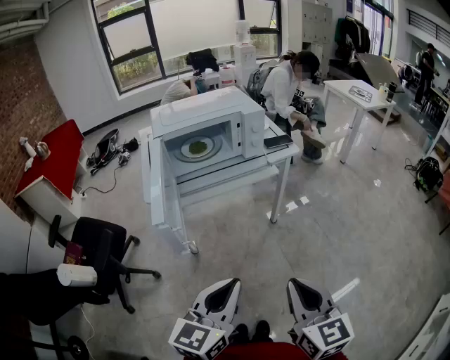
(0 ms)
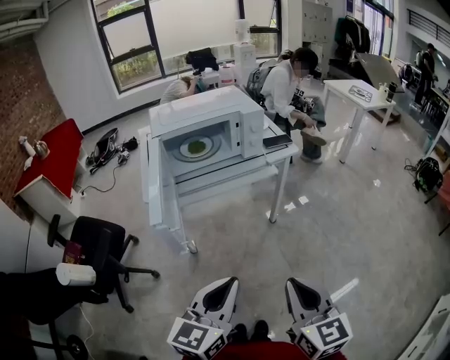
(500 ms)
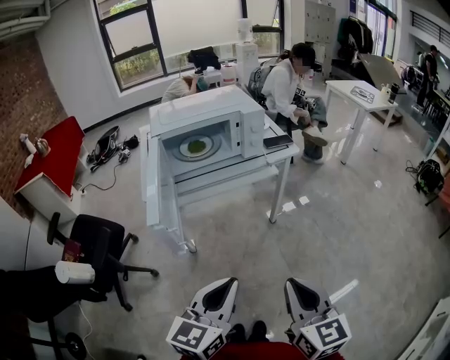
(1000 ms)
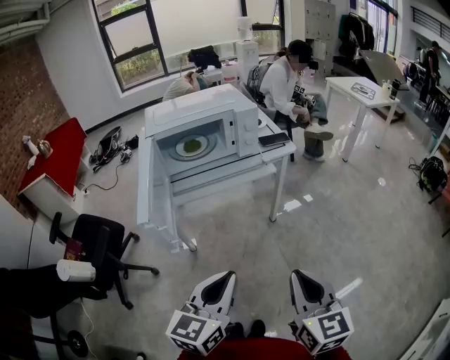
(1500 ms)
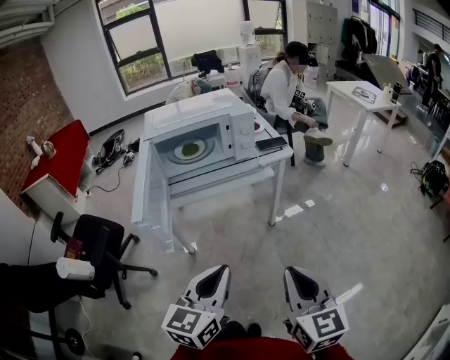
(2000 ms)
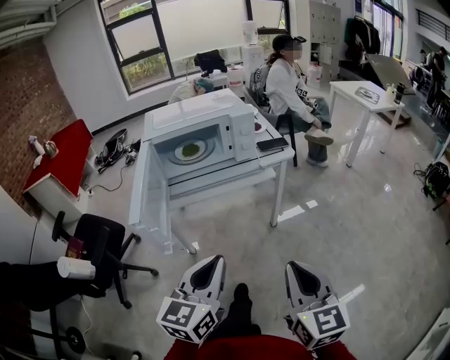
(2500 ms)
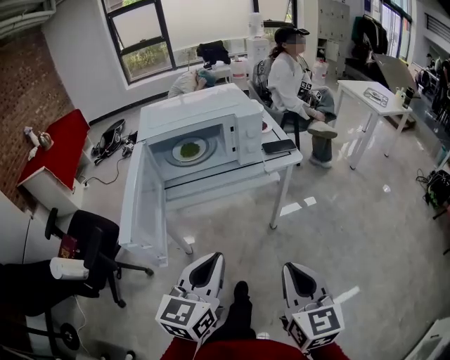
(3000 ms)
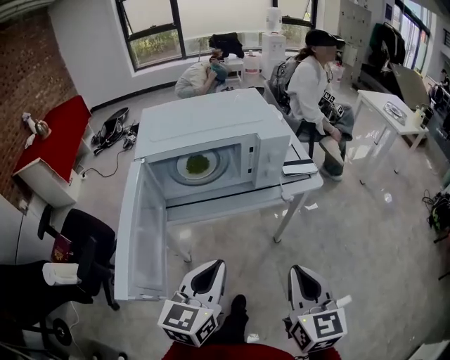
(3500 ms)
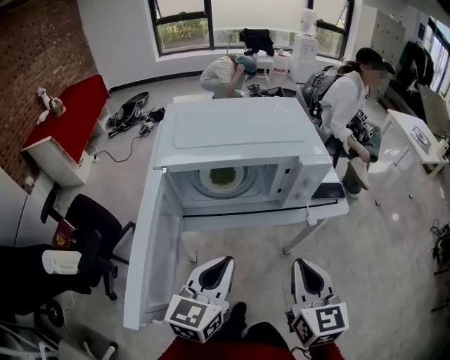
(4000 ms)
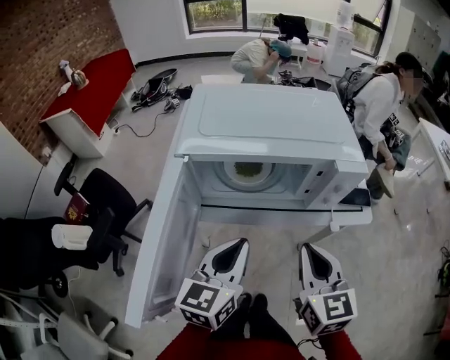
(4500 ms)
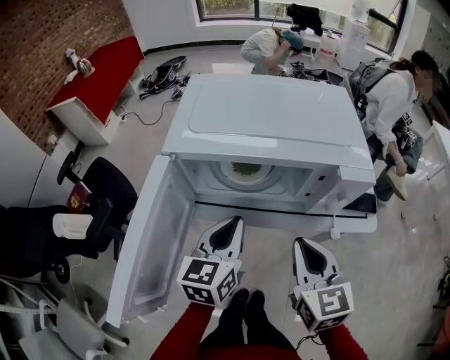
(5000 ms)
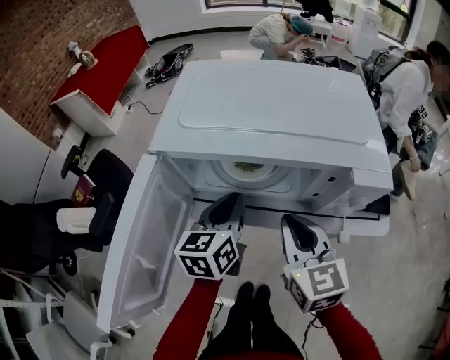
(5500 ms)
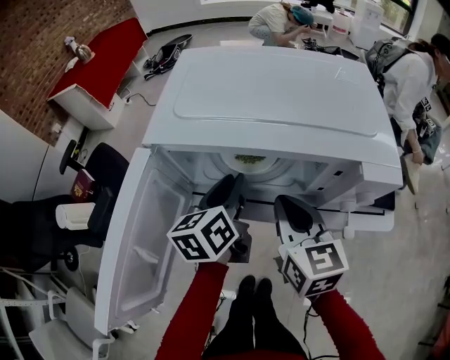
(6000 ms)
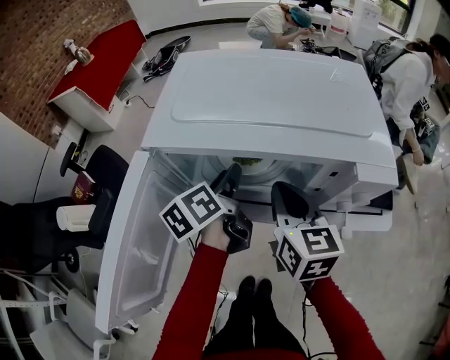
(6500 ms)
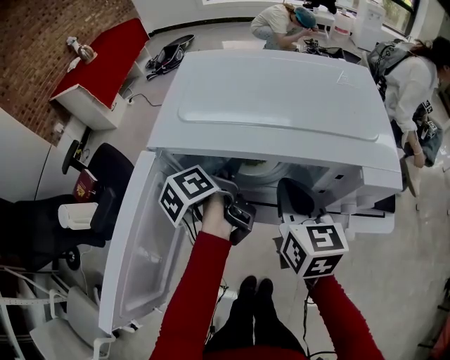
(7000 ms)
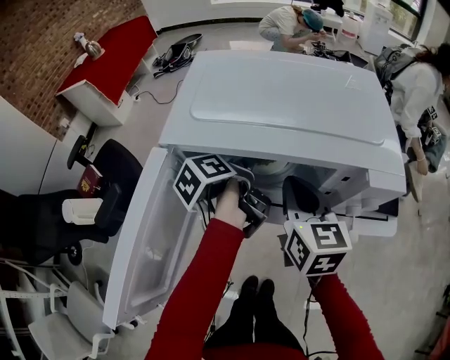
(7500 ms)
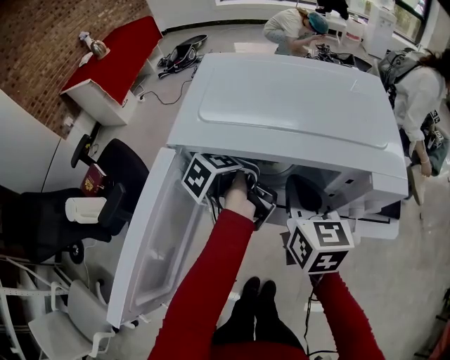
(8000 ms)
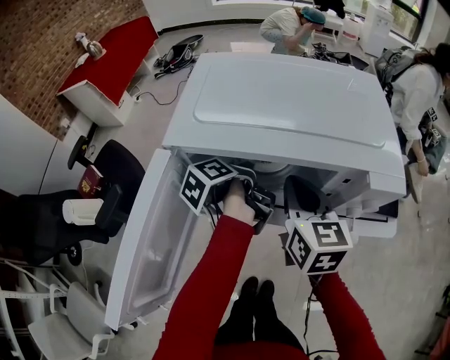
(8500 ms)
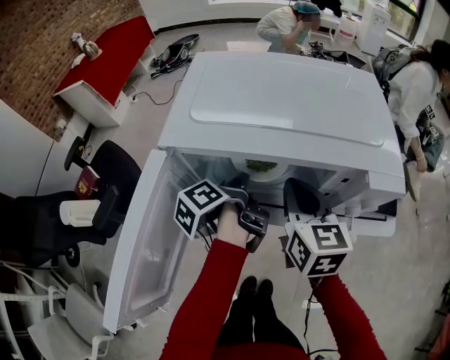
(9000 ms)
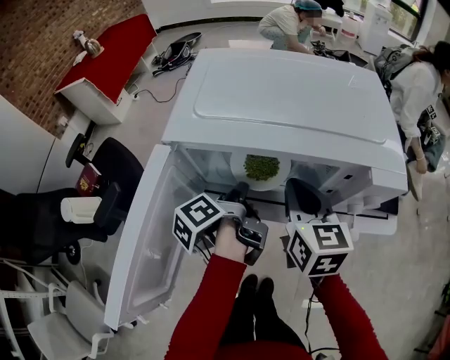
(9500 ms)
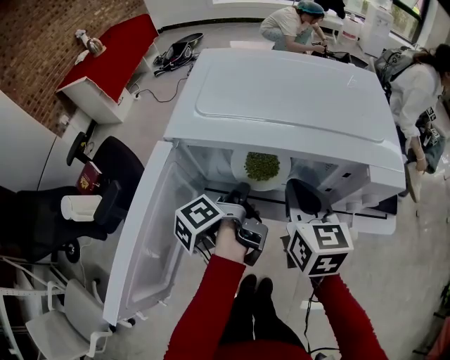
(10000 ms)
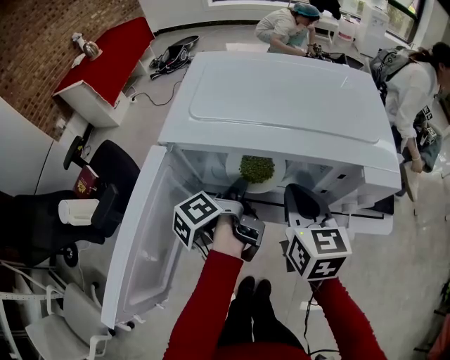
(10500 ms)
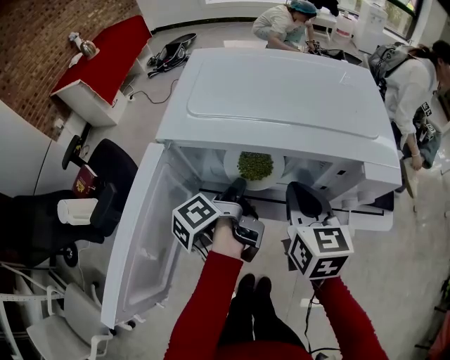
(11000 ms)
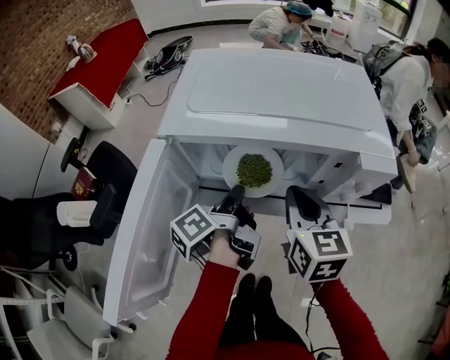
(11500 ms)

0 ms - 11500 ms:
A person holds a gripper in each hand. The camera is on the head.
0 ms - 2000 ms: The right gripper heads to the right, covering about 5 cm. Meanwhile the left gripper changes place by about 5 cm.
2000 ms - 4000 ms: Both grippers move forward, about 25 cm.
4000 ms - 6000 ms: The grippers both shift forward by about 20 cm. The right gripper turns by approximately 20 degrees, while the left gripper rotates roughly 40 degrees, and opens.
6000 ms - 7500 ms: The left gripper changes place by about 5 cm, and twists approximately 40 degrees counterclockwise, seen from behind.
7500 ms - 9500 ms: The left gripper shifts about 5 cm backward, and closes up.
9500 ms - 11500 ms: The grippers stay close to where they were, moving slightly.

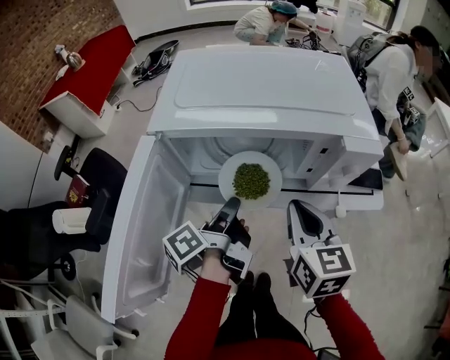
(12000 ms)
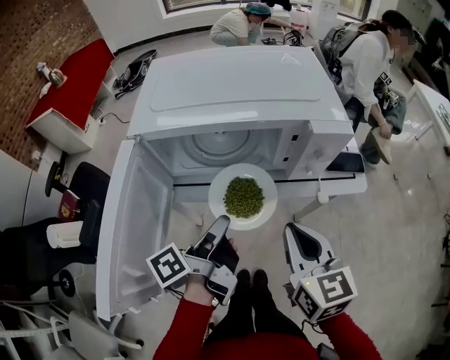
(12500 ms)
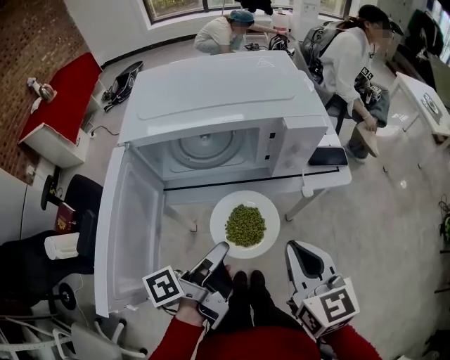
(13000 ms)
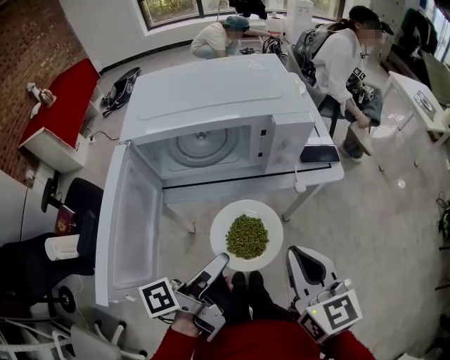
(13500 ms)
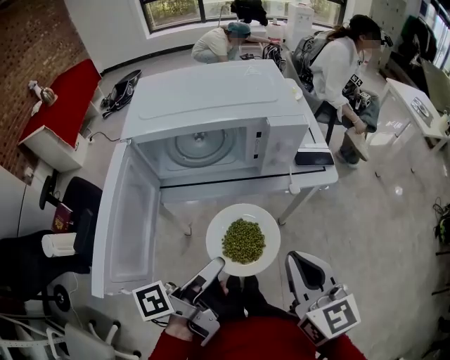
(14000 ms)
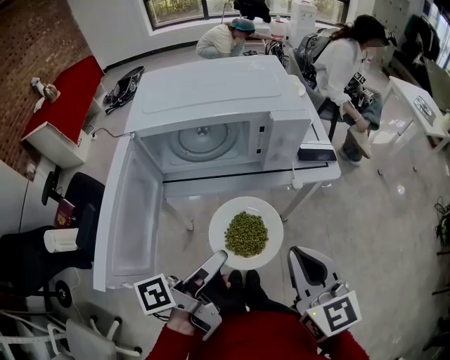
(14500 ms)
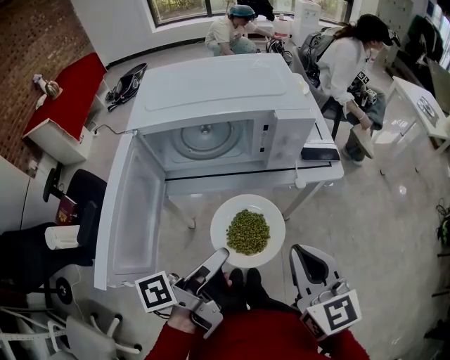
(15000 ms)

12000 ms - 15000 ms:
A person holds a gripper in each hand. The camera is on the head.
12000 ms - 13500 ms: Both grippers travel together backward and to the right, some 20 cm. The left gripper changes its angle by some 20 degrees.
13500 ms - 15000 ms: The grippers stay close to where they were, moving slightly.

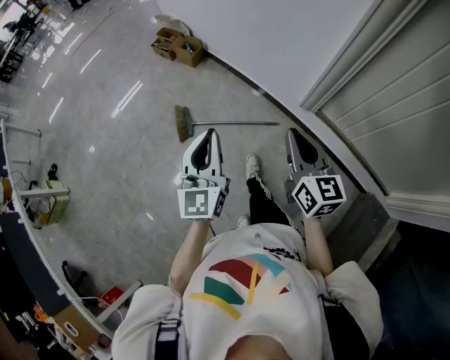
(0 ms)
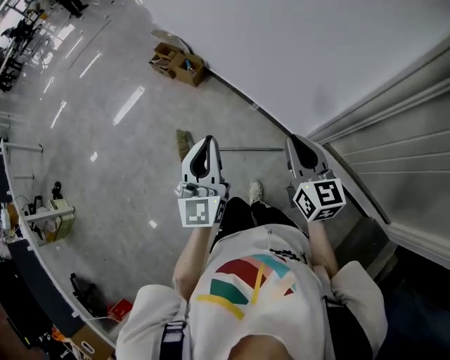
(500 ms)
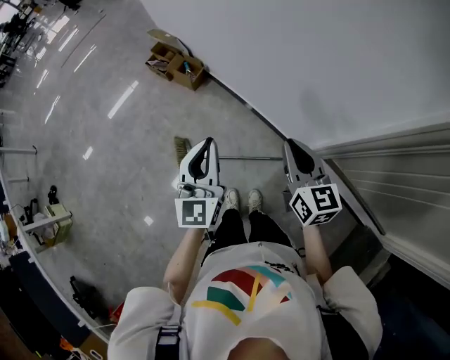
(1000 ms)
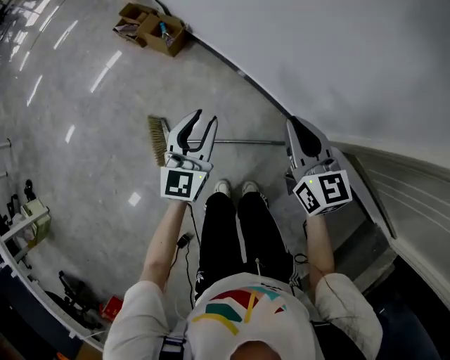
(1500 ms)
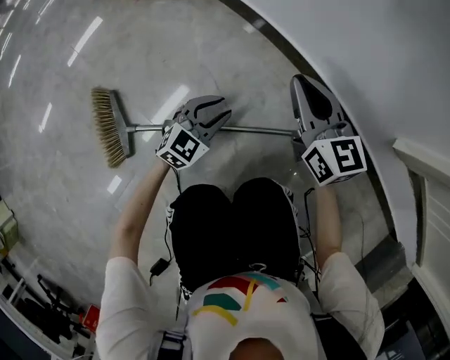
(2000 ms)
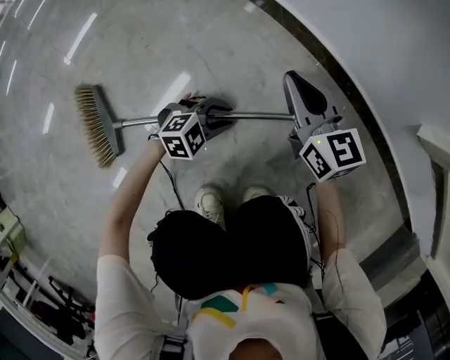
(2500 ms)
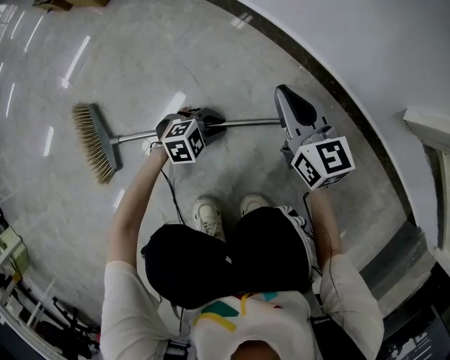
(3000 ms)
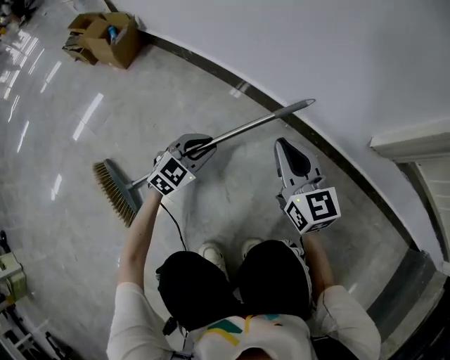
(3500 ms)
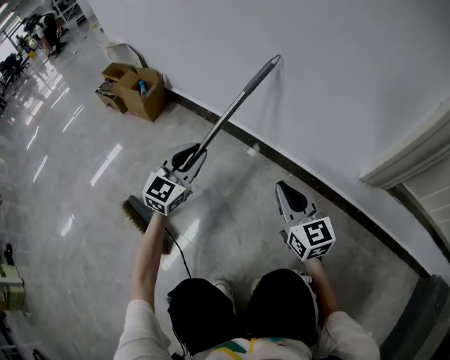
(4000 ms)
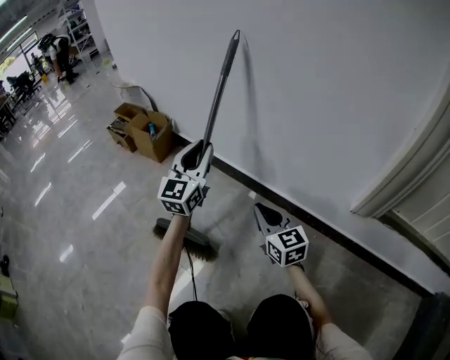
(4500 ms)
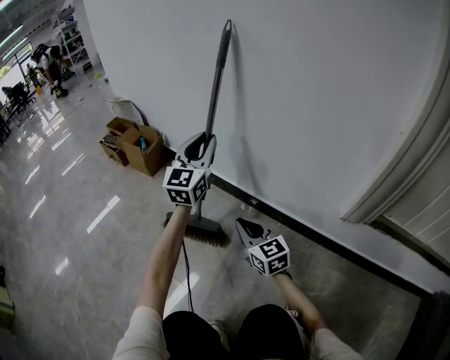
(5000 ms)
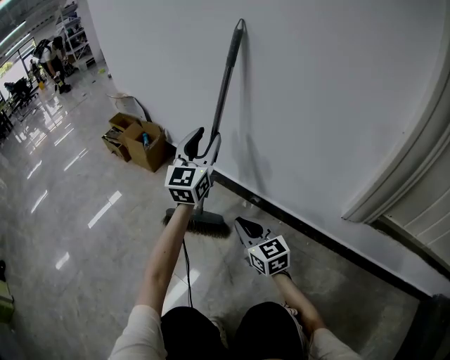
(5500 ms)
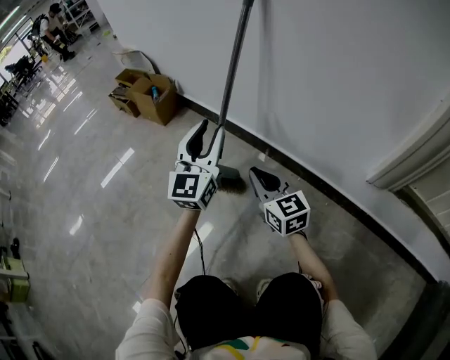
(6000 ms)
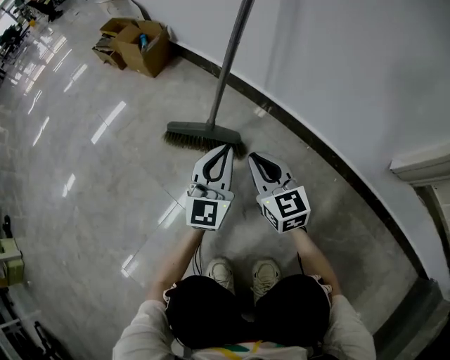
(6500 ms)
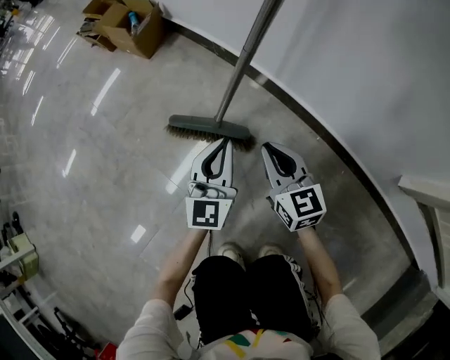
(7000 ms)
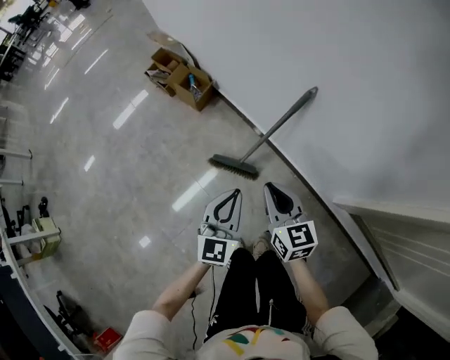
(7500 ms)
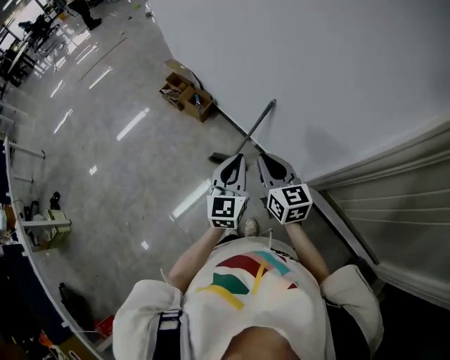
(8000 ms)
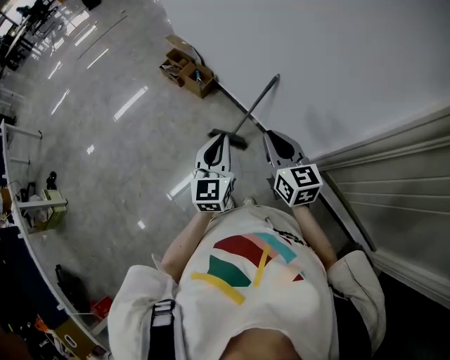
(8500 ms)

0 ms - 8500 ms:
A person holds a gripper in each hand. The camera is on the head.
0 ms - 2000 ms: The two grippers travel together, forward, approximately 40 cm. The grippers both shift downward by about 80 cm. The left gripper tilts its fingers some 30 degrees downward, and opens its fingers.
2000 ms - 4000 ms: The left gripper shifts roughly 20 cm upward, and swivels approximately 20 degrees. The right gripper travels backward and to the right by about 10 cm, and reaches about 10 cm downward, then returns.
4000 ms - 6500 ms: The right gripper moves to the left and downward, approximately 15 cm; the left gripper travels backward by some 5 cm, moves some 20 cm upward and comes back, and turns by roughly 20 degrees.
6500 ms - 8500 ms: The grippers both shift upward by approximately 80 cm. The left gripper changes its angle by about 20 degrees.

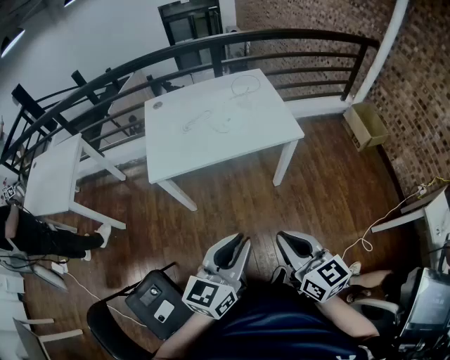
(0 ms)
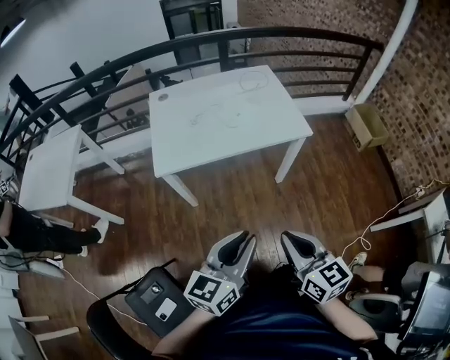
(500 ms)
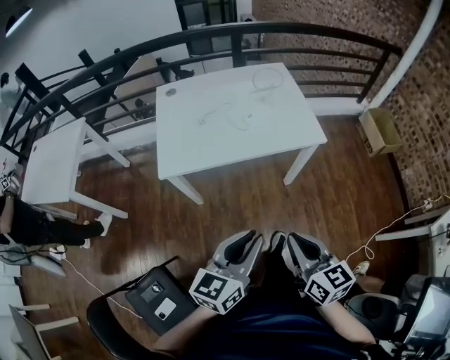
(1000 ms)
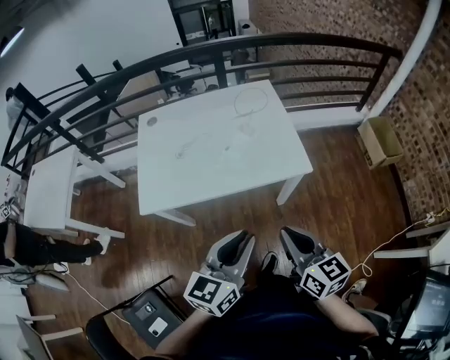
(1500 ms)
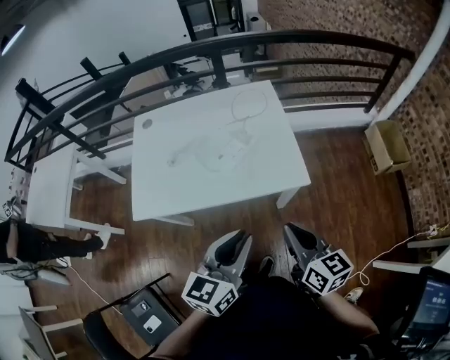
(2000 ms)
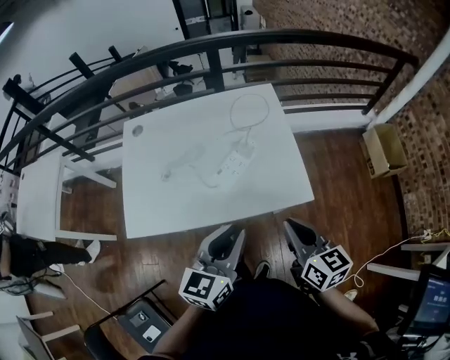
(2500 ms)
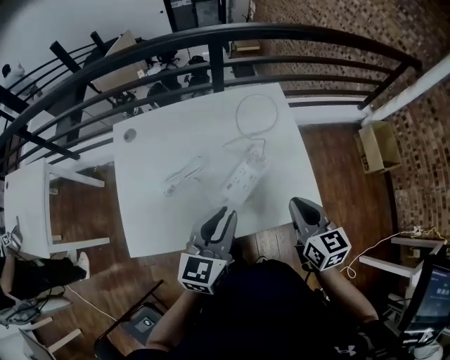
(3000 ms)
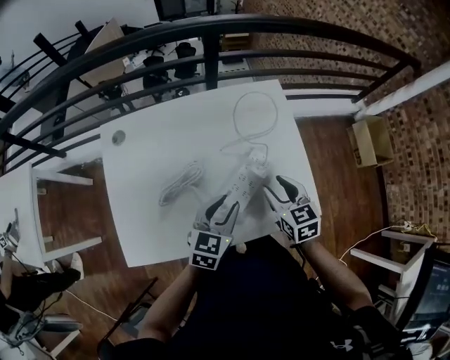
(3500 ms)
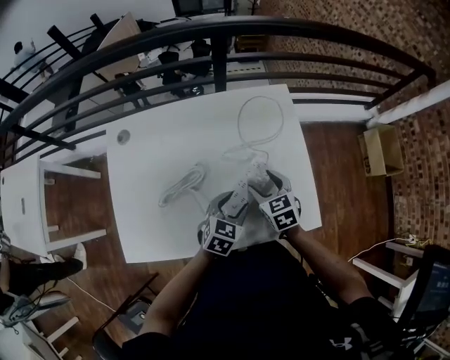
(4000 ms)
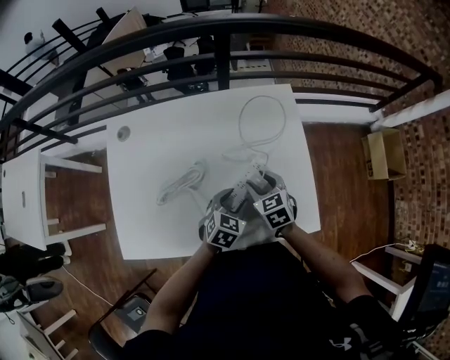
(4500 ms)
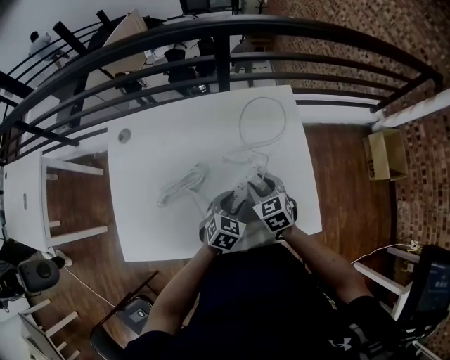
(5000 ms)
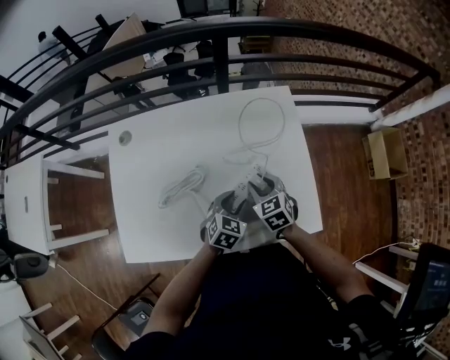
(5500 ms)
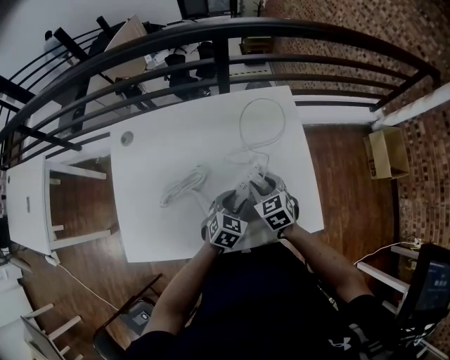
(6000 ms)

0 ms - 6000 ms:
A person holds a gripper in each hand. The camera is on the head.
0 ms - 2000 ms: The two grippers go approximately 25 cm forward.
2000 ms - 4000 ms: The grippers both shift forward and downward by about 40 cm. The left gripper swivels some 30 degrees, and opens its fingers; the right gripper rotates roughly 40 degrees, and opens up.
4000 ms - 6000 ms: The right gripper closes.
